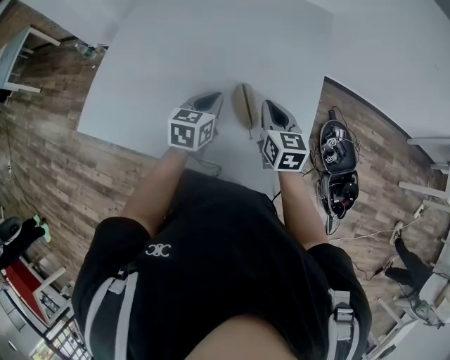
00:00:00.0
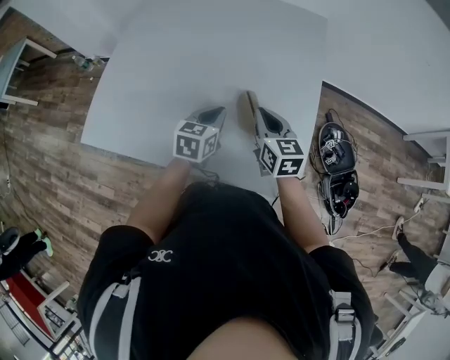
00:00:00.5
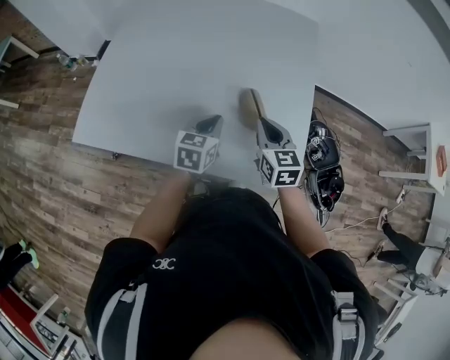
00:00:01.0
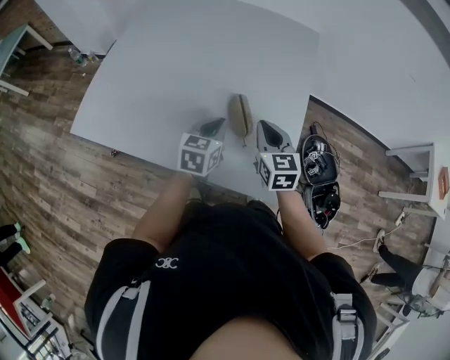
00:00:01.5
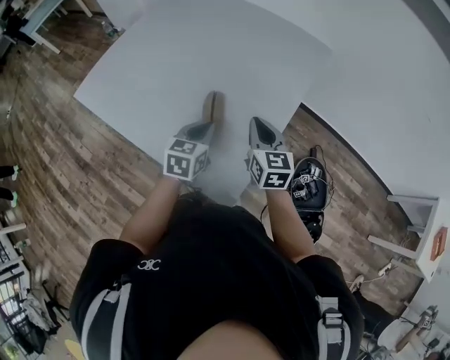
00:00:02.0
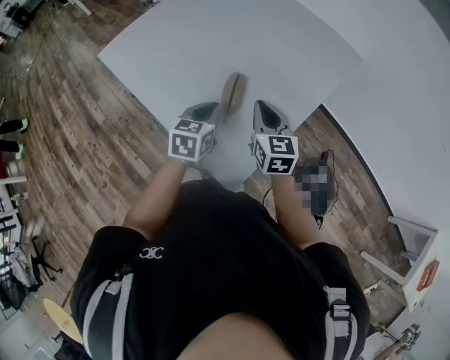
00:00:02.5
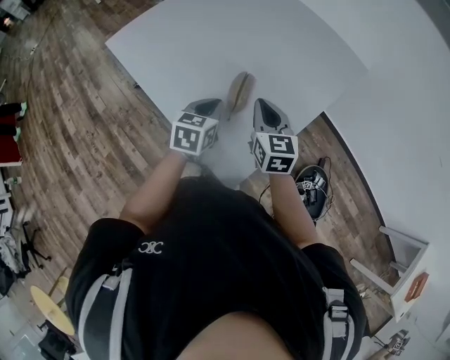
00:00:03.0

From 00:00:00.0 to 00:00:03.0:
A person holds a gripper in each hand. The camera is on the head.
From 00:00:00.0 to 00:00:01.5: Both grippers travel together backward, some 5 cm. The right gripper moves some 10 cm to the left and comes back, while the left gripper reaches roughly 10 cm to the left, then returns.
From 00:00:01.5 to 00:00:03.0: The left gripper shifts by some 10 cm, and changes its angle by roughly 30 degrees. Meanwhile the right gripper rotates some 30 degrees.

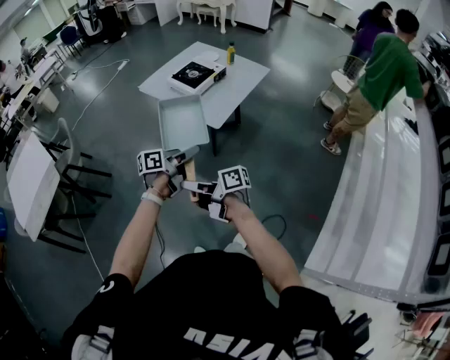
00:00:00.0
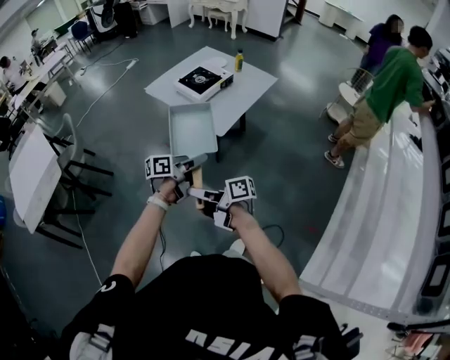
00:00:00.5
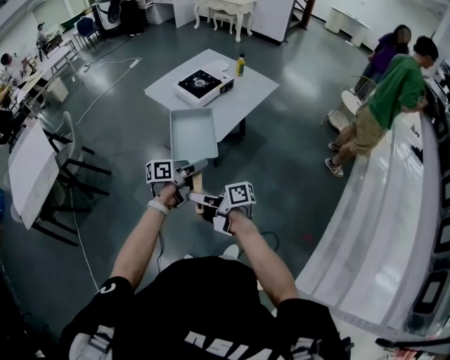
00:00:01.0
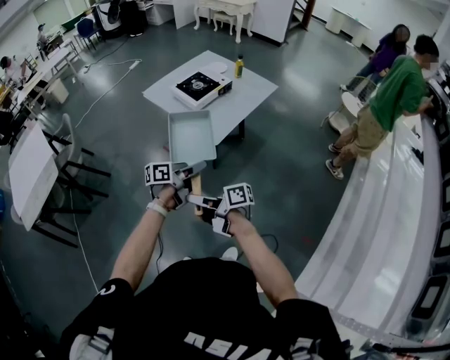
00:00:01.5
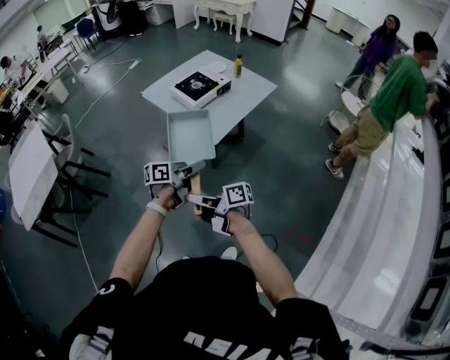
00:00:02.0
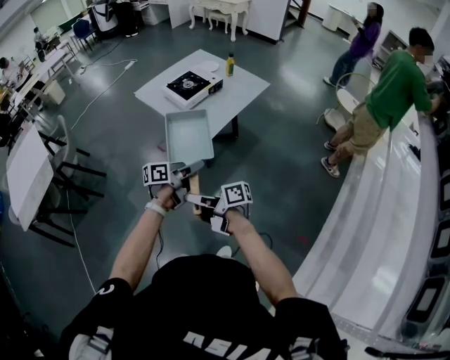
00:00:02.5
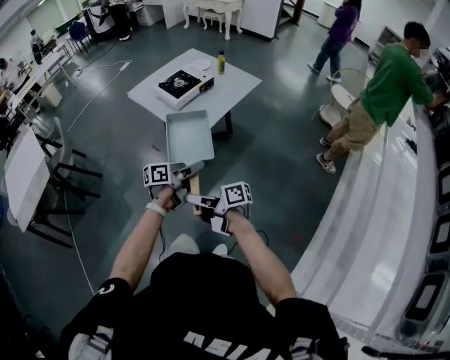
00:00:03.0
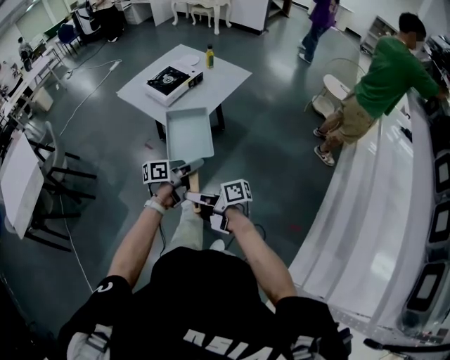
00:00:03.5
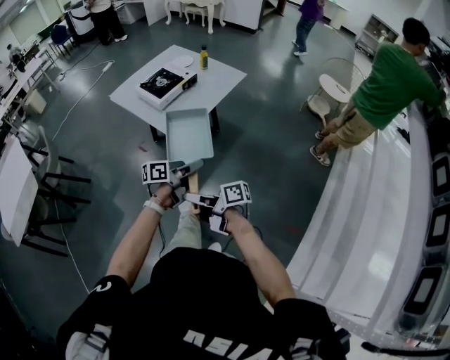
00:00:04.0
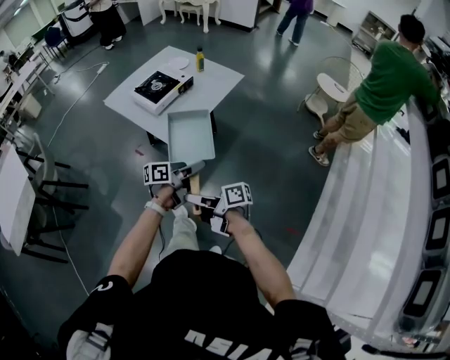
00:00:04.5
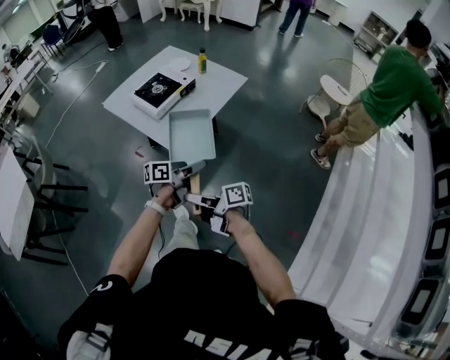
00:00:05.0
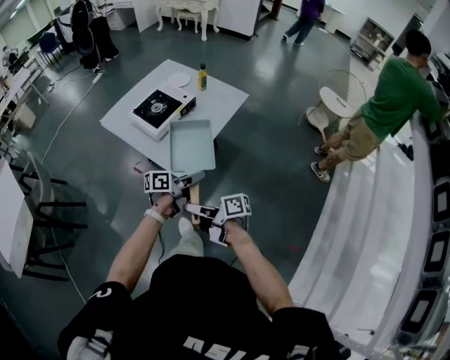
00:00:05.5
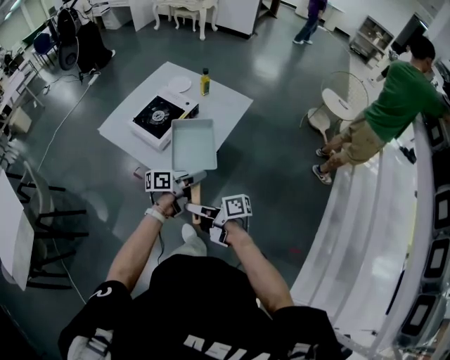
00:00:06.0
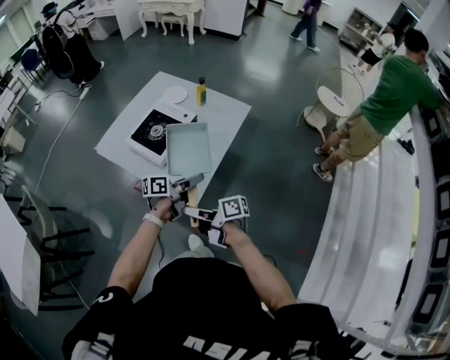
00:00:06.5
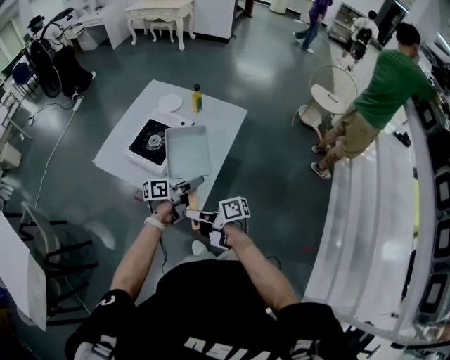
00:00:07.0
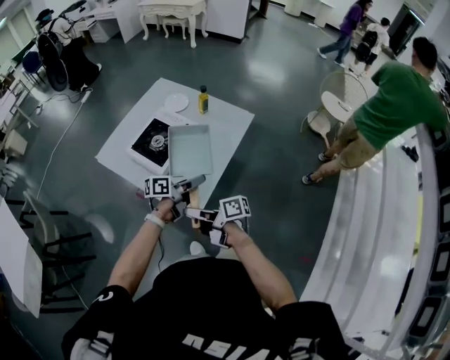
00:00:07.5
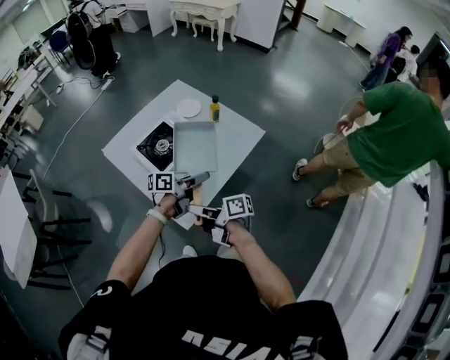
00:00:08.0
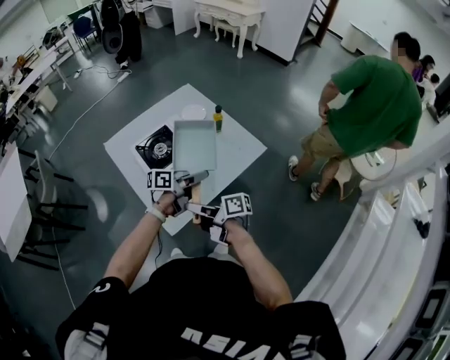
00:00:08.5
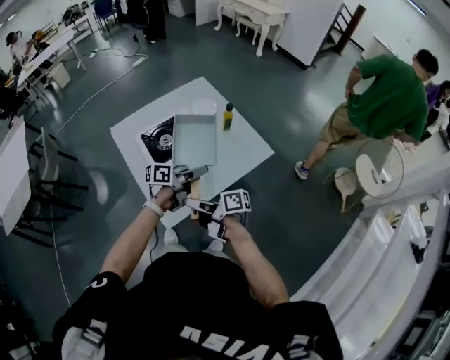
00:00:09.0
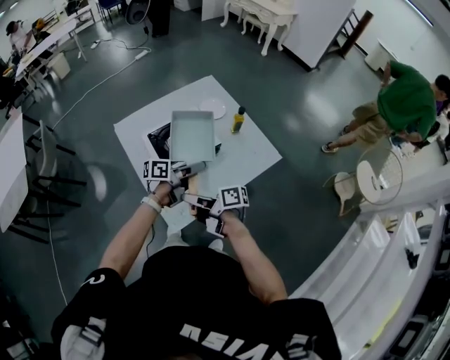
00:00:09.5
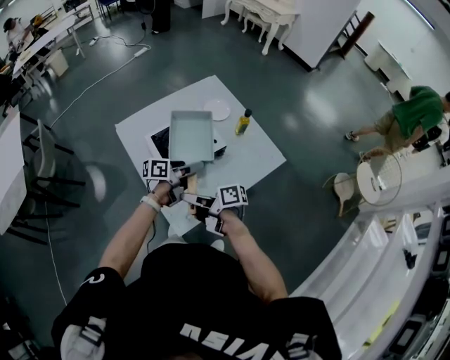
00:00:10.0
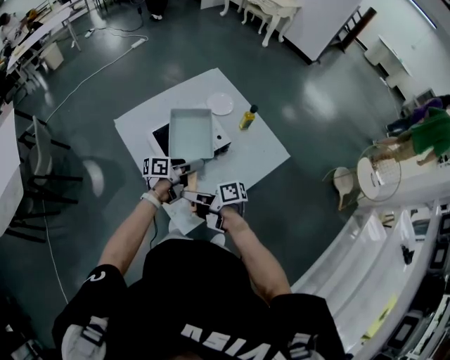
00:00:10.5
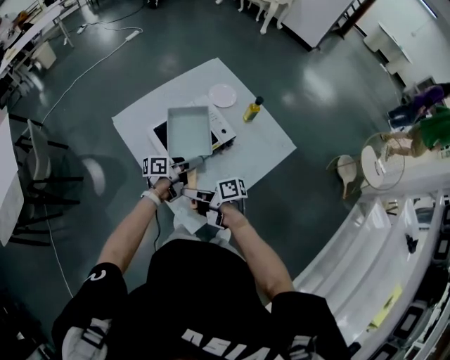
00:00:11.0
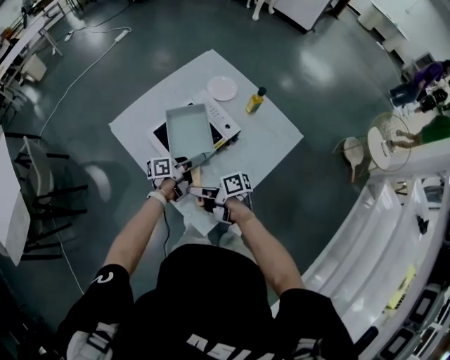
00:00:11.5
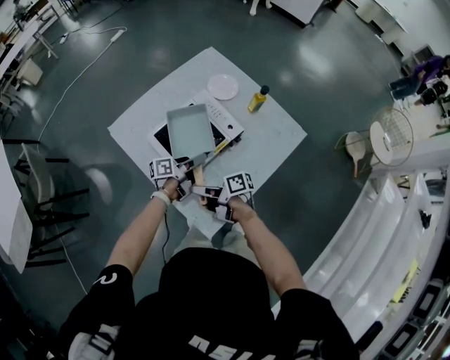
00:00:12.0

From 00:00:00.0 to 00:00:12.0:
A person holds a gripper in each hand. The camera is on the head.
From 00:00:00.0 to 00:00:02.0: The right gripper changes place by some 10 cm, while the left gripper moves approximately 10 cm.
From 00:00:02.0 to 00:00:04.0: The left gripper ends up roughly 15 cm from where it was. The right gripper ends up about 15 cm from where it was.
From 00:00:04.0 to 00:00:06.0: The left gripper moves approximately 25 cm, while the right gripper moves roughly 25 cm.
From 00:00:06.0 to 00:00:08.0: The left gripper changes place by some 20 cm. The right gripper shifts by roughly 20 cm.
From 00:00:08.0 to 00:00:10.0: The left gripper changes place by about 15 cm. The right gripper moves approximately 10 cm.
From 00:00:10.0 to 00:00:12.0: The two grippers go approximately 15 cm downward.

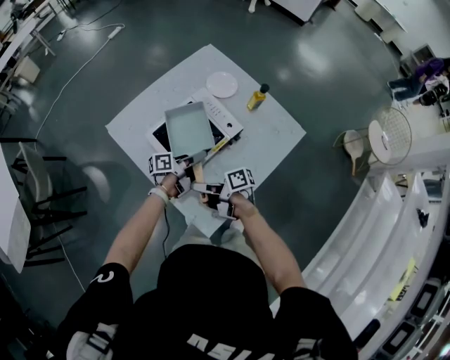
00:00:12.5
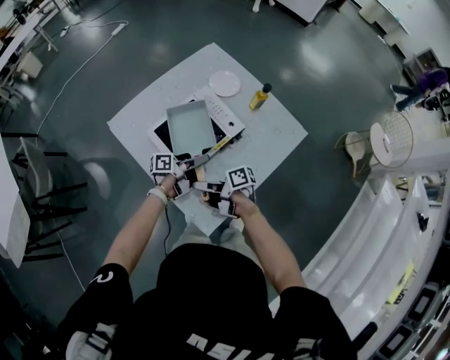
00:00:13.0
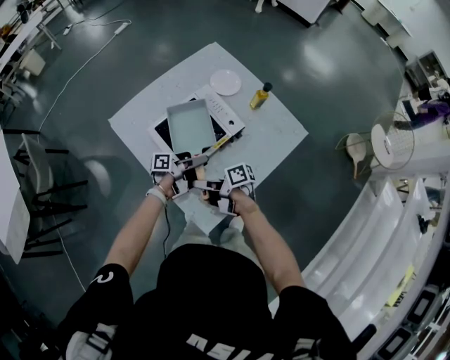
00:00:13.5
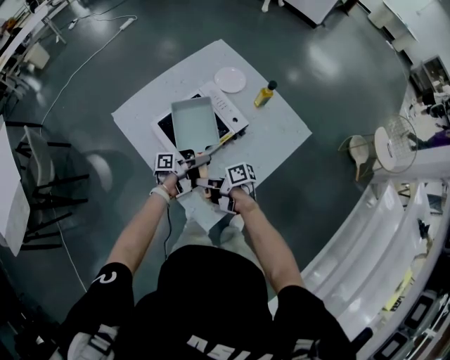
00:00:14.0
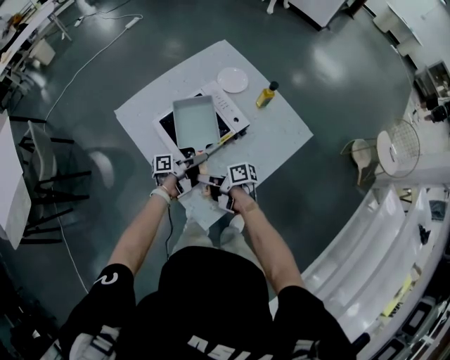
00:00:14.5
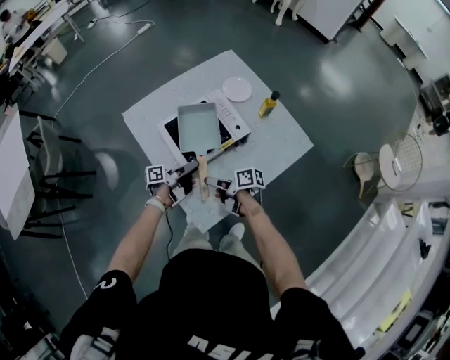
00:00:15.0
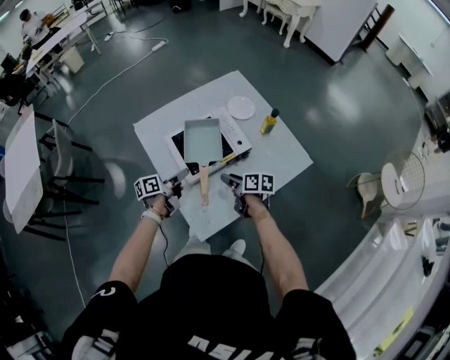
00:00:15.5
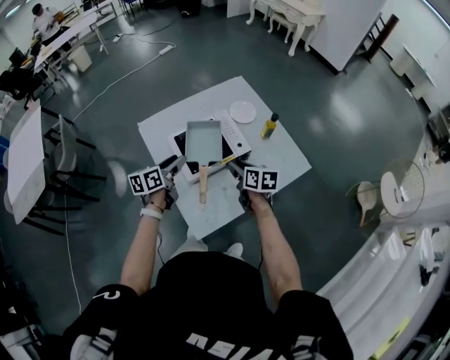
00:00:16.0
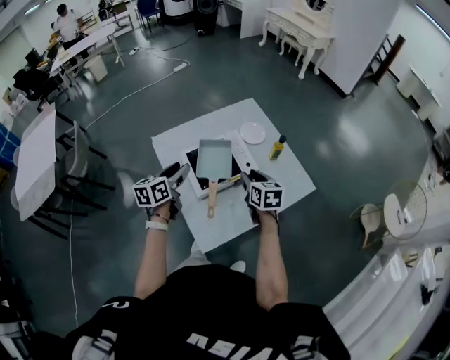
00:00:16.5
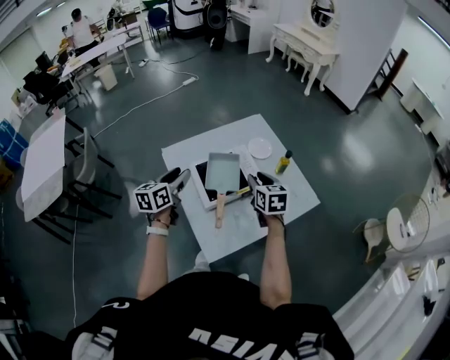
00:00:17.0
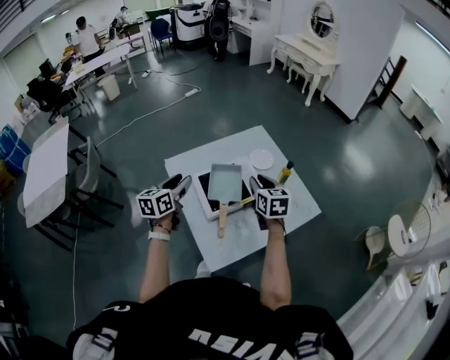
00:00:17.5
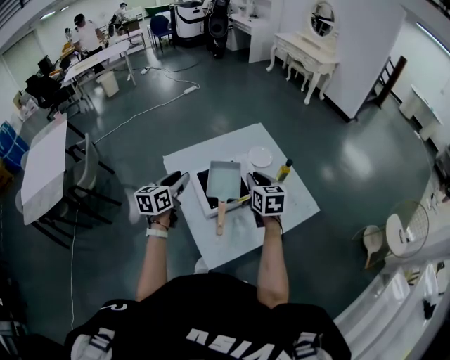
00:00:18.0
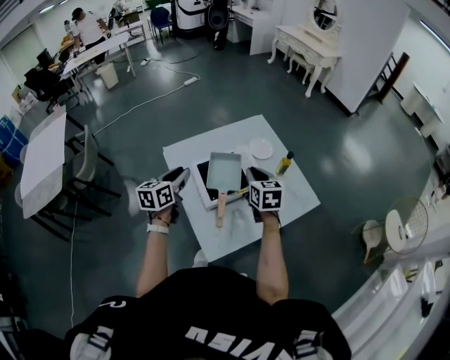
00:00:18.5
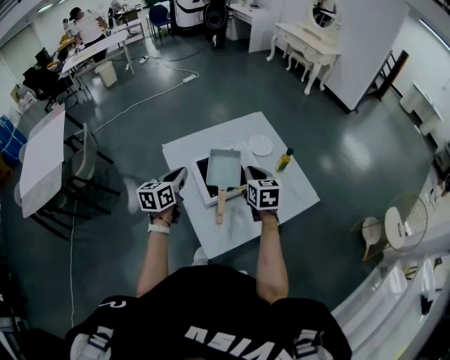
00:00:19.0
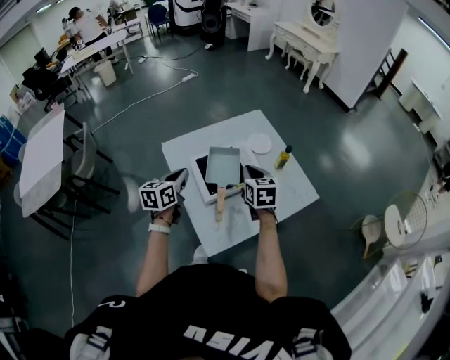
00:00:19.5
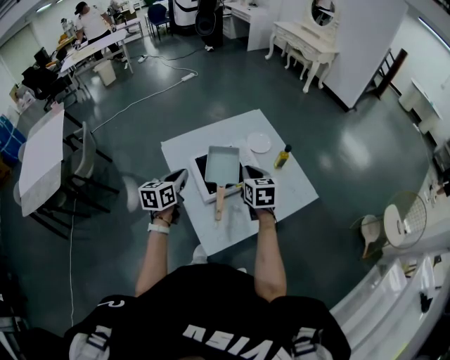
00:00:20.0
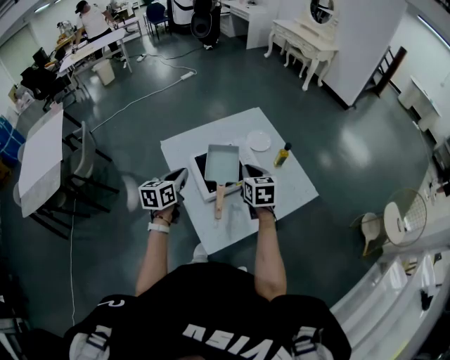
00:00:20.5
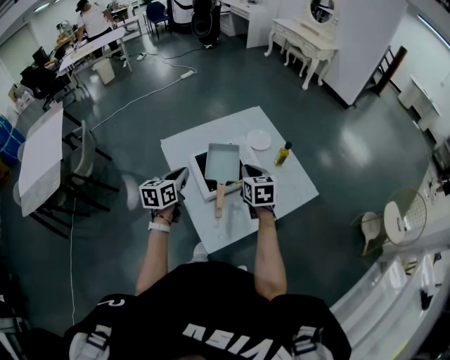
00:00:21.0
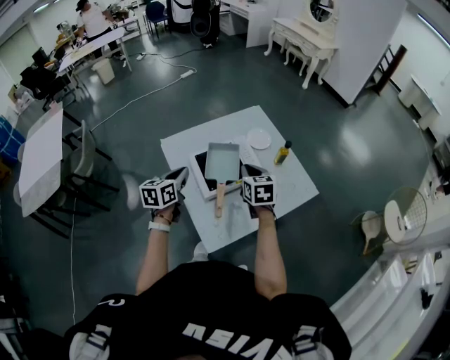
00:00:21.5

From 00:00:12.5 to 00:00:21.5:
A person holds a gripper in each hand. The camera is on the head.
From 00:00:12.5 to 00:00:14.5: The grippers make only small movements.
From 00:00:14.5 to 00:00:17.0: Both grippers move upward, approximately 25 cm. The right gripper rotates around the line of its fingers by roughly 60 degrees, counterclockwise from behind; the left gripper turns by about 70 degrees.
From 00:00:17.0 to 00:00:19.5: The left gripper closes. Meanwhile the right gripper closes up.
From 00:00:19.5 to 00:00:21.5: Both grippers stay put.

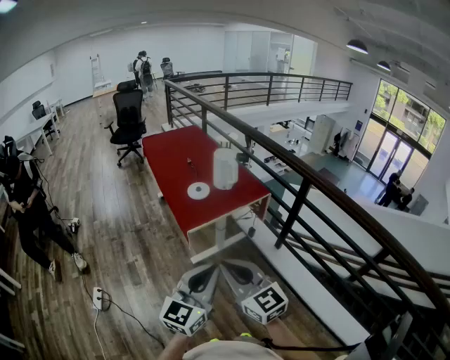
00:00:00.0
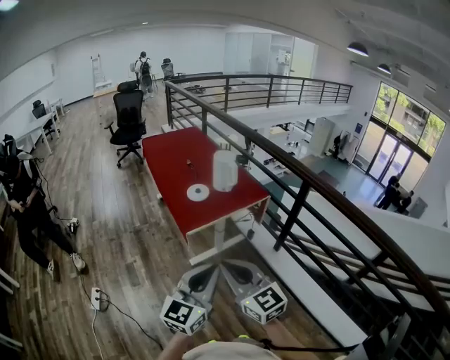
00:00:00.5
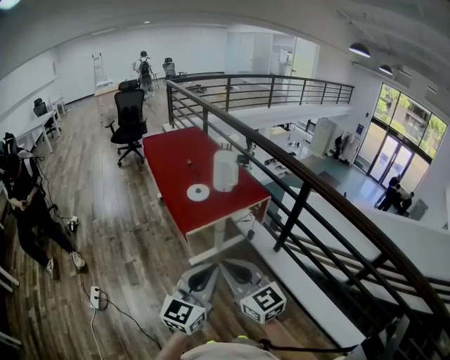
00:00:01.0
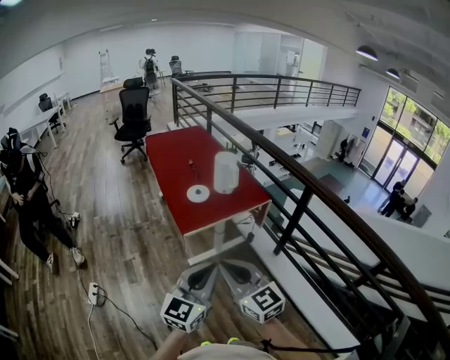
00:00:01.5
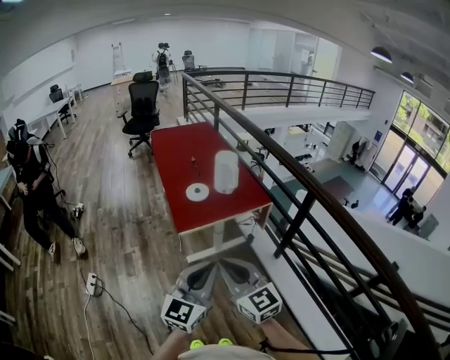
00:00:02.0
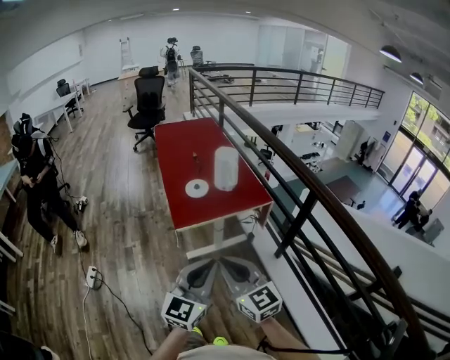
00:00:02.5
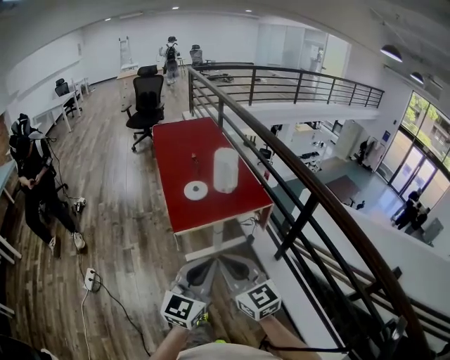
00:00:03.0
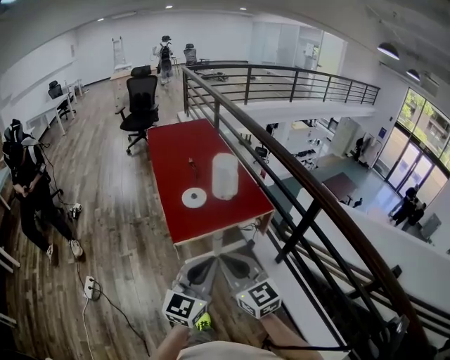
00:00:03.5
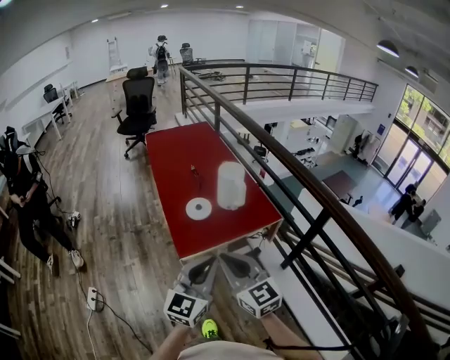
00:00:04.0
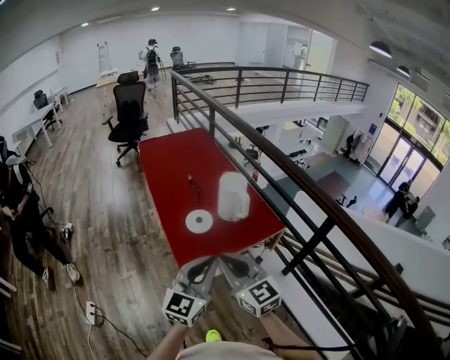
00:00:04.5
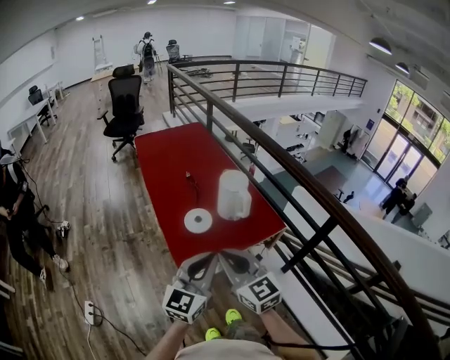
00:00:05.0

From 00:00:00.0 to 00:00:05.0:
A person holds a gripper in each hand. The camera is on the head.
From 00:00:00.0 to 00:00:02.5: Both grippers move to the right and forward, some 15 cm.
From 00:00:02.5 to 00:00:05.0: Both grippers move forward, roughly 25 cm.
